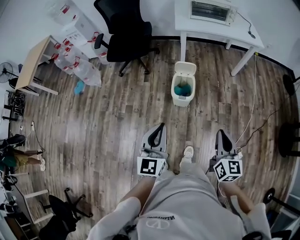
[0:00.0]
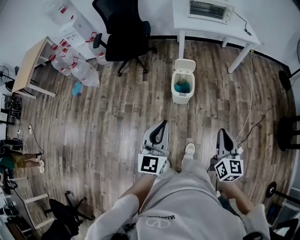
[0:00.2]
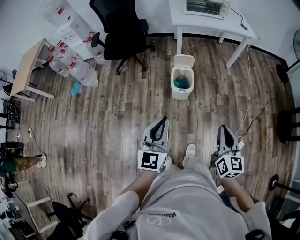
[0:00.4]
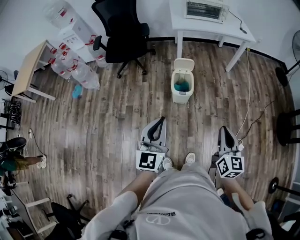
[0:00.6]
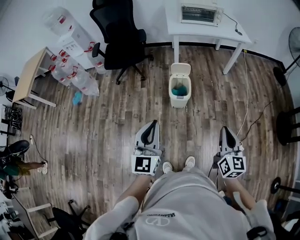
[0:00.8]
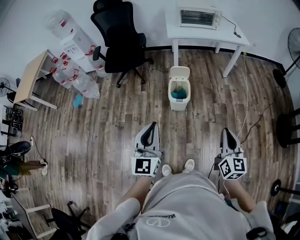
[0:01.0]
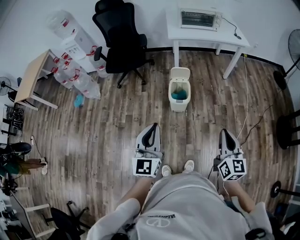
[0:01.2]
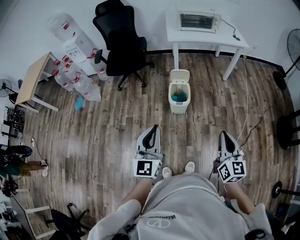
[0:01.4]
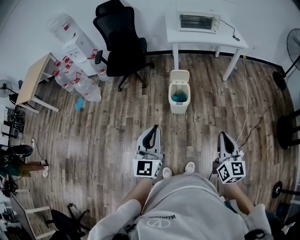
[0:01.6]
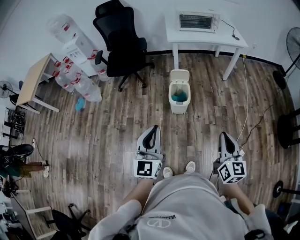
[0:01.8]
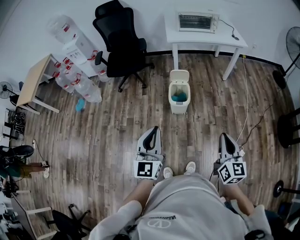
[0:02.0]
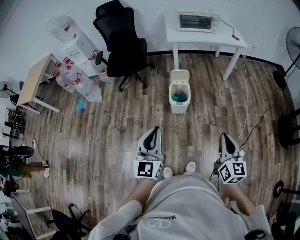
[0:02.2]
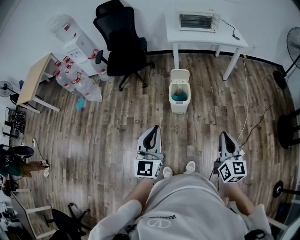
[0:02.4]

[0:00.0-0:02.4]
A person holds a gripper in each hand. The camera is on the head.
0:00.0 to 0:01.2: Both grippers move backward, approximately 10 cm.
0:01.2 to 0:02.4: There are only small adjustments of the grippers.

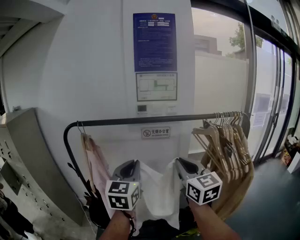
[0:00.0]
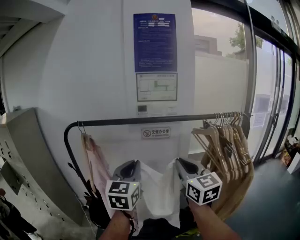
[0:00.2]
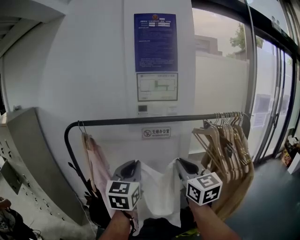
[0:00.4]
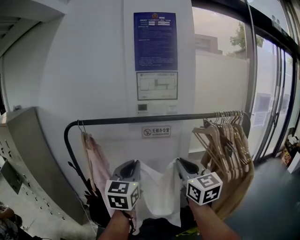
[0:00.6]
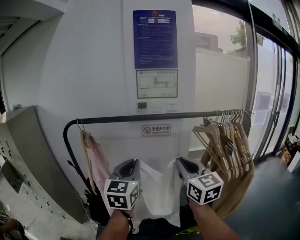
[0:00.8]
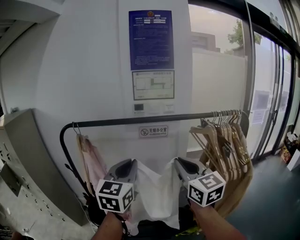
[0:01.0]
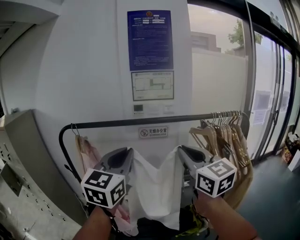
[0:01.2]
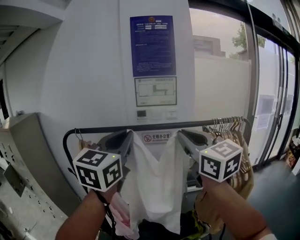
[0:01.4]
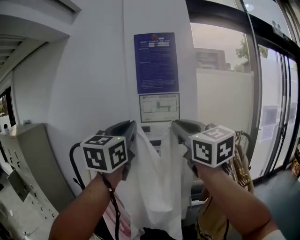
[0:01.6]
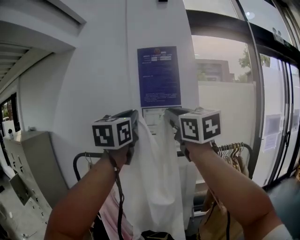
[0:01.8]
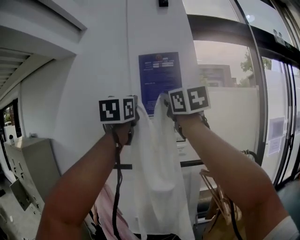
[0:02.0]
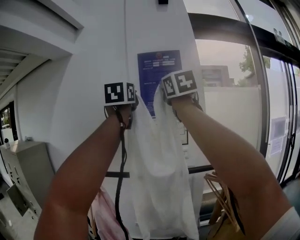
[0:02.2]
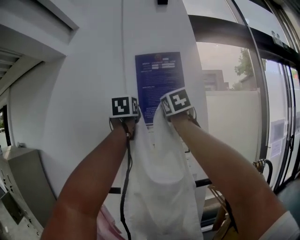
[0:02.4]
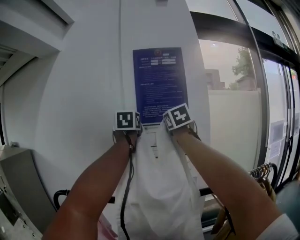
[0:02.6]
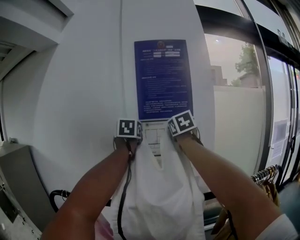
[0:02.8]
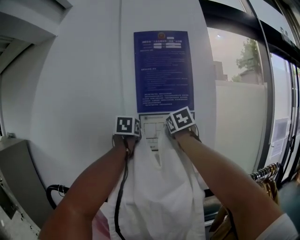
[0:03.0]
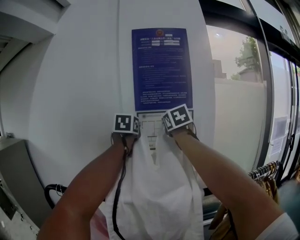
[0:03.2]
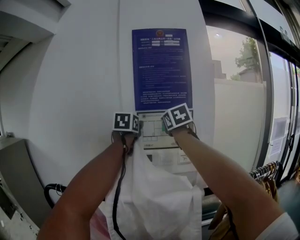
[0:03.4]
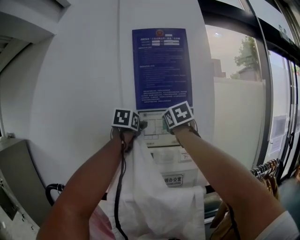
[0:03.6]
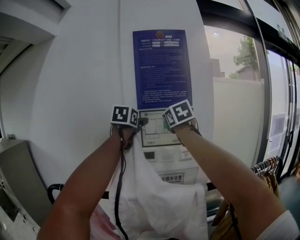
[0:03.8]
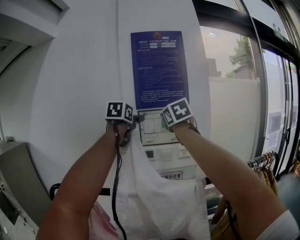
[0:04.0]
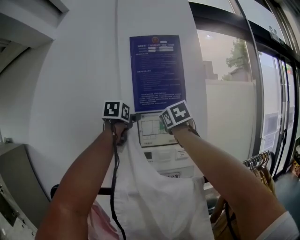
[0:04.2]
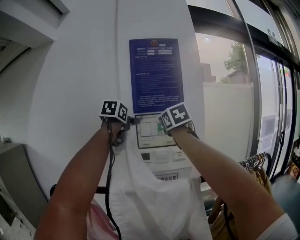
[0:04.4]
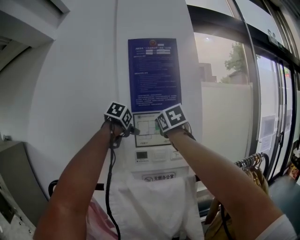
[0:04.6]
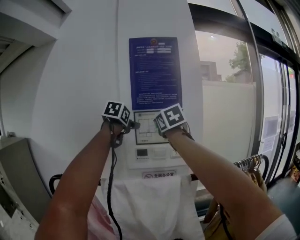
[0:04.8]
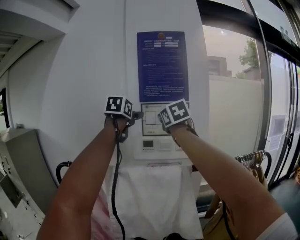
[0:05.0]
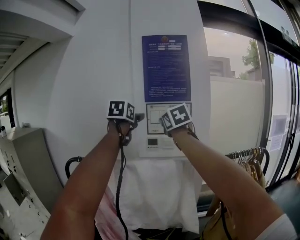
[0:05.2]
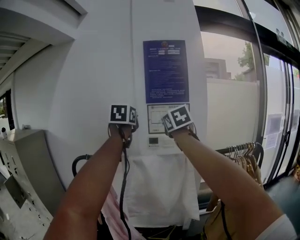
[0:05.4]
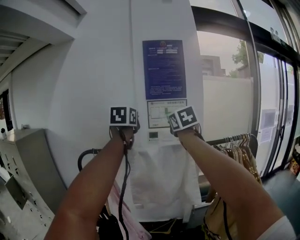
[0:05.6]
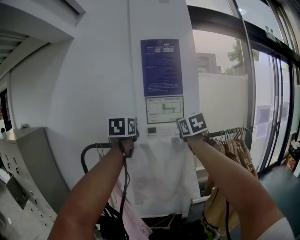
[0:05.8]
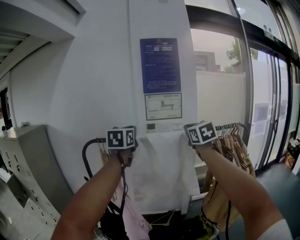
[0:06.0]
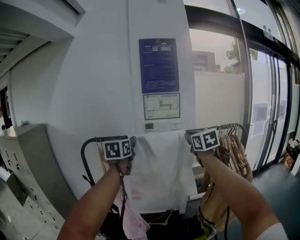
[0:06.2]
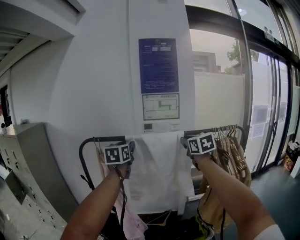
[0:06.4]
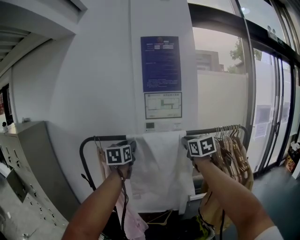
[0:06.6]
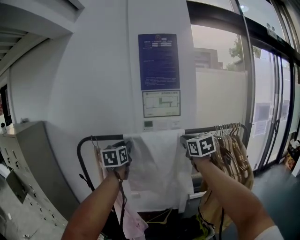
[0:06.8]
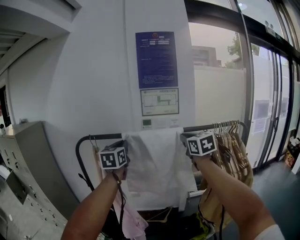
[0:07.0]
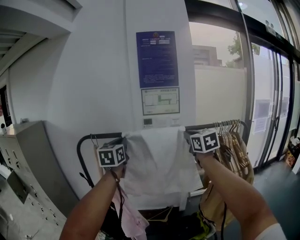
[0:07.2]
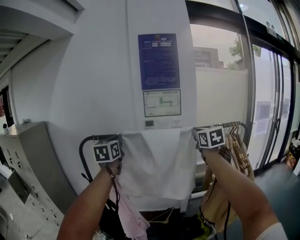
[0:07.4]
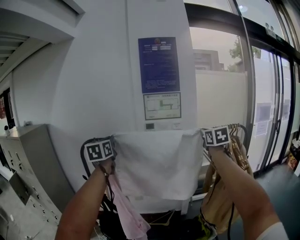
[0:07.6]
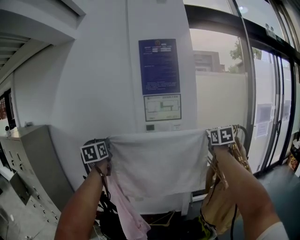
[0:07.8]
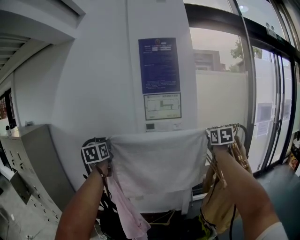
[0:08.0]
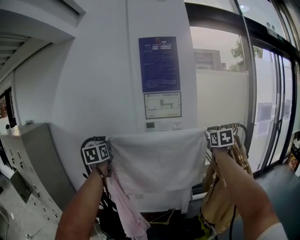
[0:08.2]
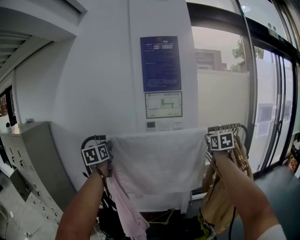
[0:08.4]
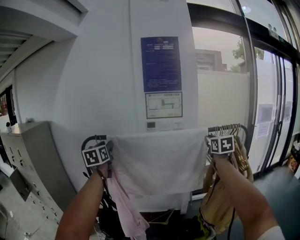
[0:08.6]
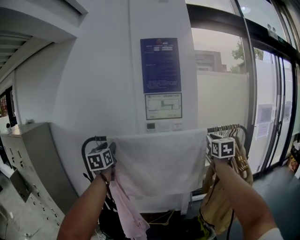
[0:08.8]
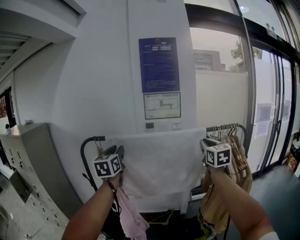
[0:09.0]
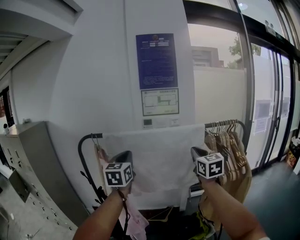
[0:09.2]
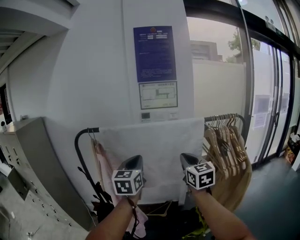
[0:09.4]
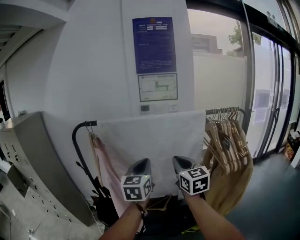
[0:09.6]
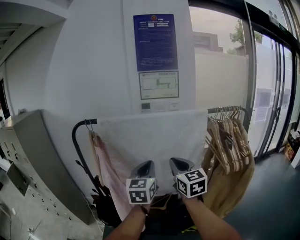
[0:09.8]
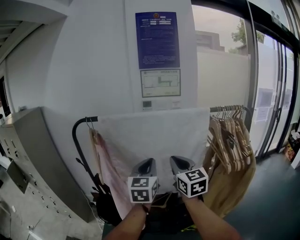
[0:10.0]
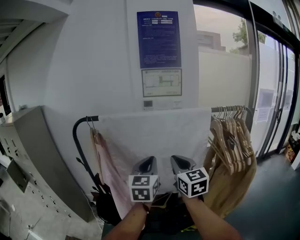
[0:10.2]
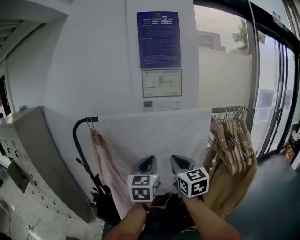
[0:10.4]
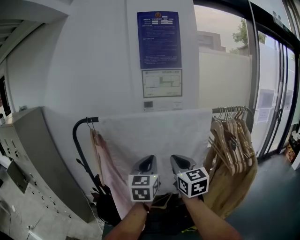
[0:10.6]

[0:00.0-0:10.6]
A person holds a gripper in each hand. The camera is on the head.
0:00.0 to 0:01.6: The grippers both shift upward by some 25 cm.
0:01.6 to 0:03.0: The two grippers travel together, forward, roughly 50 cm. The left gripper rotates approximately 20 degrees; the right gripper rotates about 30 degrees.
0:03.0 to 0:04.6: The grippers both shift backward by some 10 cm. The left gripper swivels about 30 degrees, and opens its fingers.
0:04.6 to 0:06.0: The left gripper moves backward, some 30 cm, swivels roughly 30 degrees, and closes its fingers. The right gripper is displaced backward and downward by approximately 30 cm, and closes its fingers.
0:06.0 to 0:07.6: The right gripper travels to the right by roughly 10 cm, while the left gripper goes about 10 cm to the left.
0:07.6 to 0:09.0: The right gripper heads backward, covering about 5 cm, while the left gripper ends up about 5 cm from where it was.
0:09.0 to 0:10.6: The right gripper goes approximately 20 cm to the left and downward; the left gripper heads to the right and downward, covering roughly 20 cm.

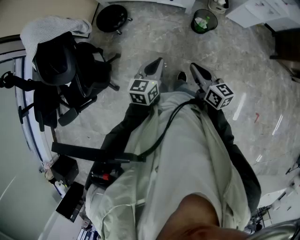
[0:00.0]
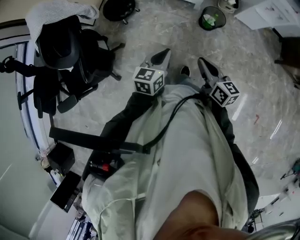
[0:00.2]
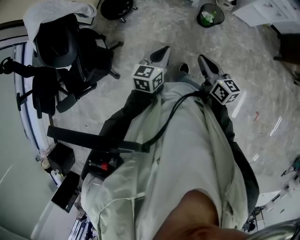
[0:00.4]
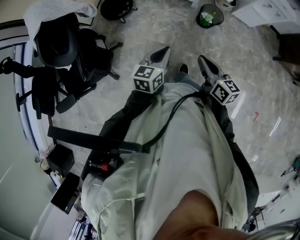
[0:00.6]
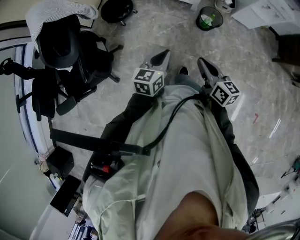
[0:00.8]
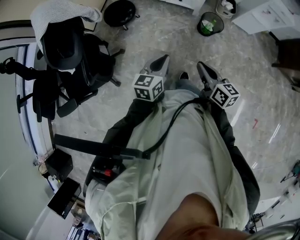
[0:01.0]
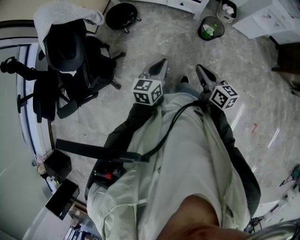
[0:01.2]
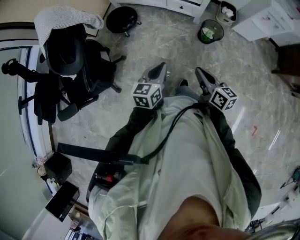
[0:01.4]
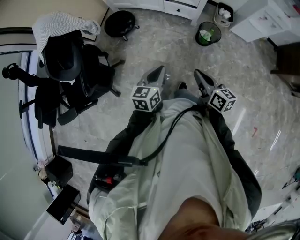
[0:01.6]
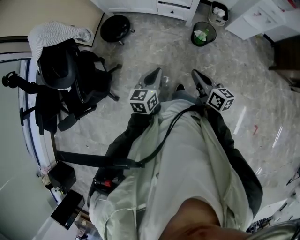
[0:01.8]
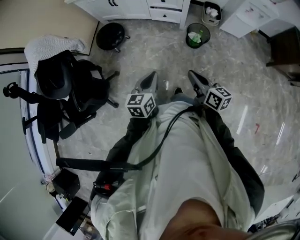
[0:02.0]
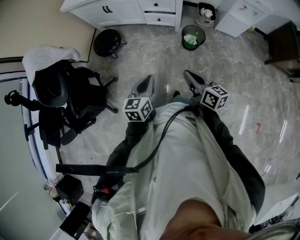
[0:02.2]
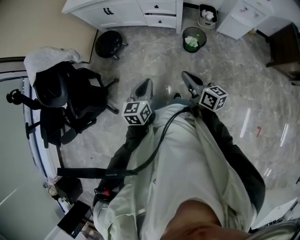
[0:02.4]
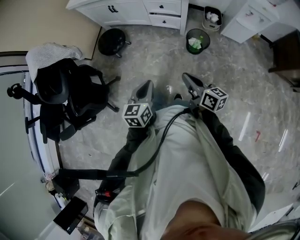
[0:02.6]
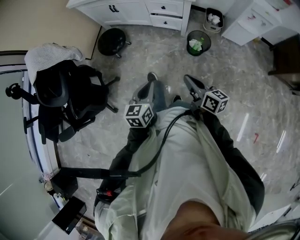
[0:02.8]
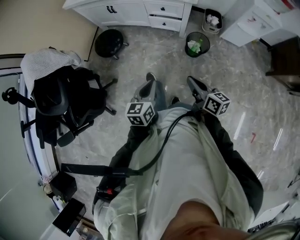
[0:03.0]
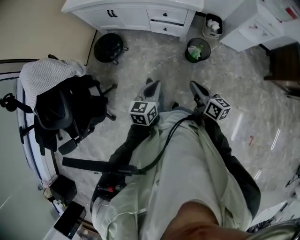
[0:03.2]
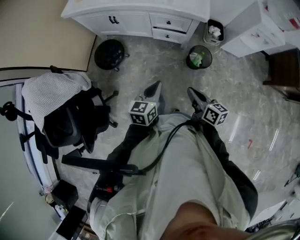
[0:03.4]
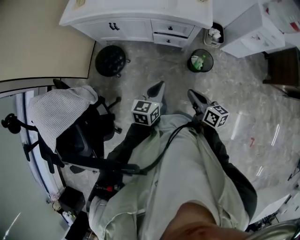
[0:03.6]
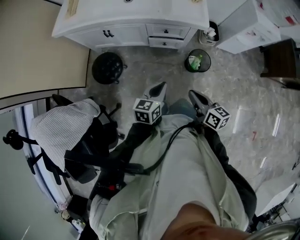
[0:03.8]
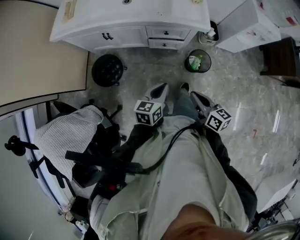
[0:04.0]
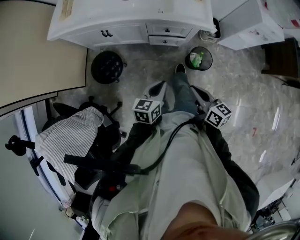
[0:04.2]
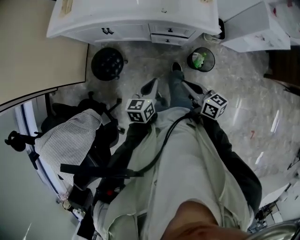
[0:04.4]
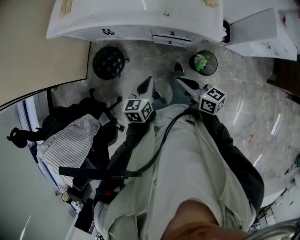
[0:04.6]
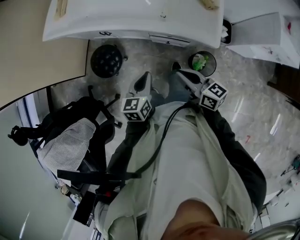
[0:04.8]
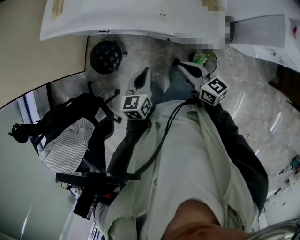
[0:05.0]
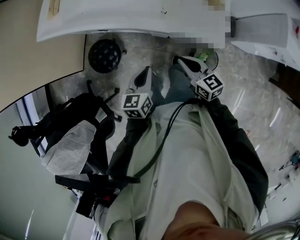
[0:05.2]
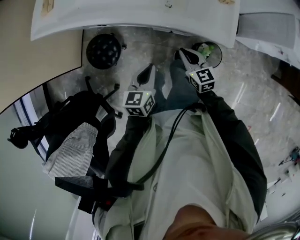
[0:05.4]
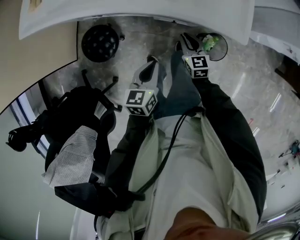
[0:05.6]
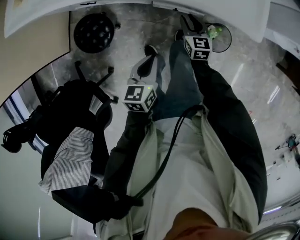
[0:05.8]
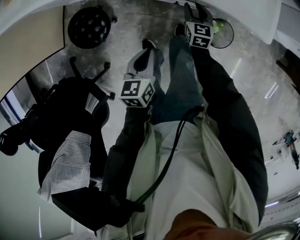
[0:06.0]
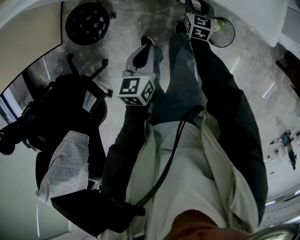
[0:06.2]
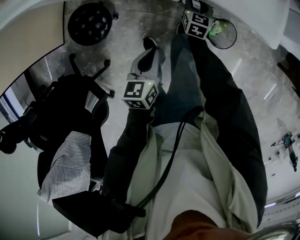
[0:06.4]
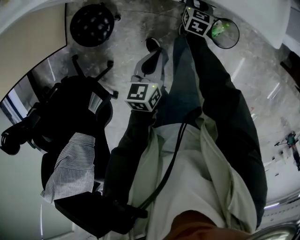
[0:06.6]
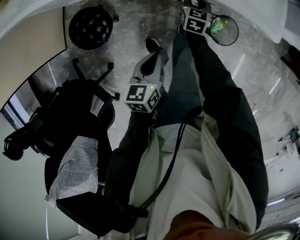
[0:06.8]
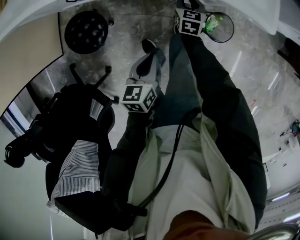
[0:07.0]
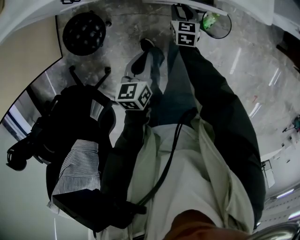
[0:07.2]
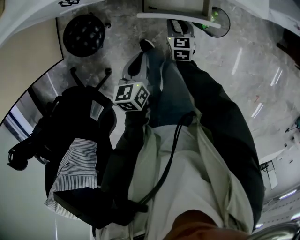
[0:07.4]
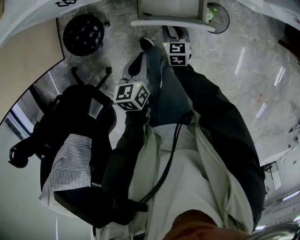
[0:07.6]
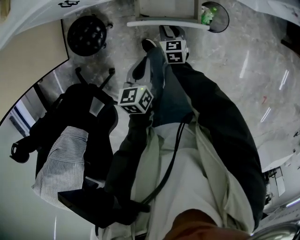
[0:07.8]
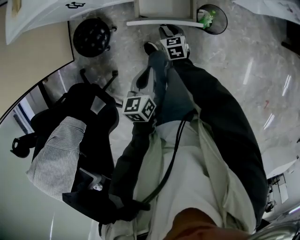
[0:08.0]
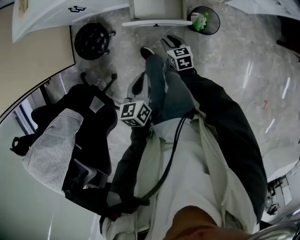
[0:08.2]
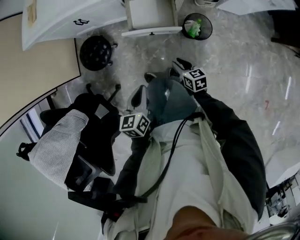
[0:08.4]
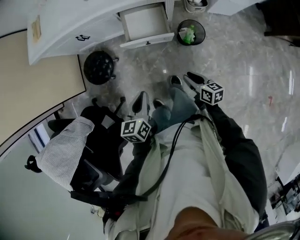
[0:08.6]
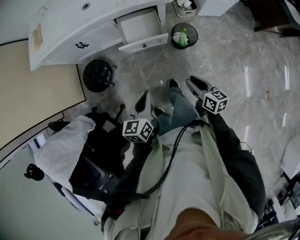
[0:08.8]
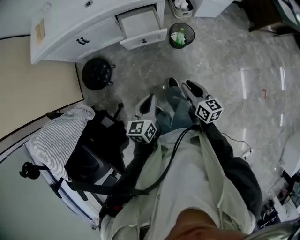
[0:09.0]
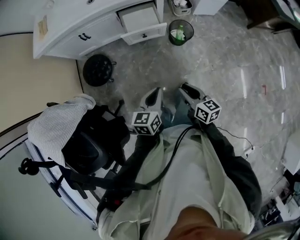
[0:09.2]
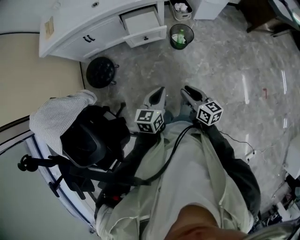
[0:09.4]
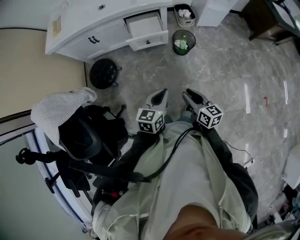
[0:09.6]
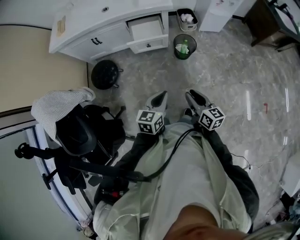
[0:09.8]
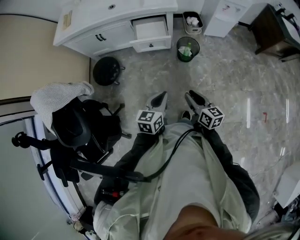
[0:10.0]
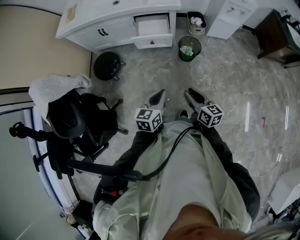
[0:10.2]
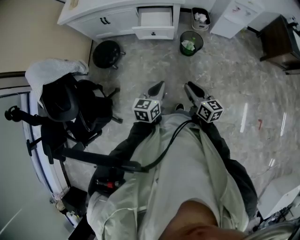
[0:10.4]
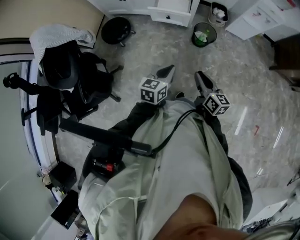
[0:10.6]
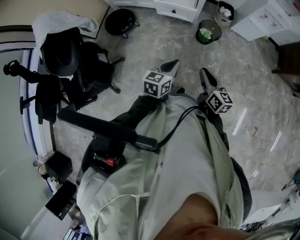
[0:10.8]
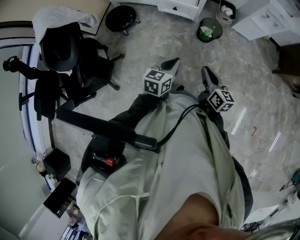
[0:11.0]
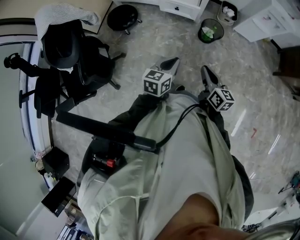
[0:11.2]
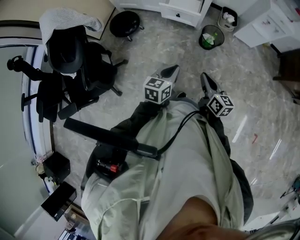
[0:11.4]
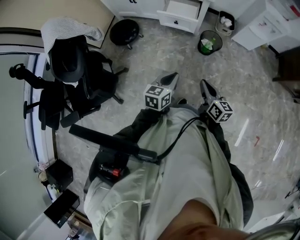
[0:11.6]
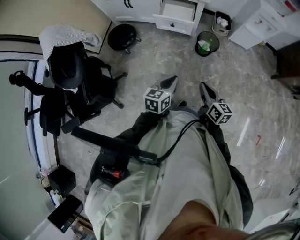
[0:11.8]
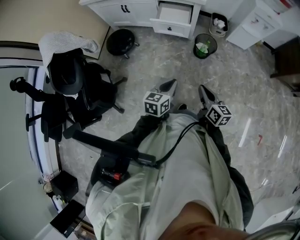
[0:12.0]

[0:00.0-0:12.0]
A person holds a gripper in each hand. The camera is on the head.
0:00.0 to 0:01.6: The grippers move only a little.
0:01.6 to 0:03.0: Both grippers travel together to the right and forward, about 10 cm.
0:03.0 to 0:04.4: The right gripper shifts about 25 cm forward and to the left. The left gripper goes about 30 cm forward.
0:04.4 to 0:06.0: The left gripper is displaced downward by roughly 15 cm. The right gripper heads downward, covering roughly 30 cm, rotates roughly 50 degrees, and opens its fingers.
0:06.0 to 0:07.6: The right gripper heads backward, covering about 15 cm, while the left gripper travels backward by roughly 5 cm.
0:07.6 to 0:09.0: Both grippers travel together backward and upward, roughly 40 cm. The left gripper rotates about 20 degrees. Meanwhile the right gripper turns by some 30 degrees.
0:09.0 to 0:10.4: The two grippers go some 15 cm to the right and backward.
0:10.4 to 0:12.0: The right gripper closes its fingers.
